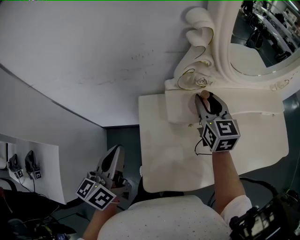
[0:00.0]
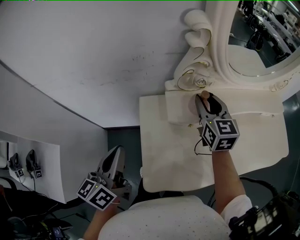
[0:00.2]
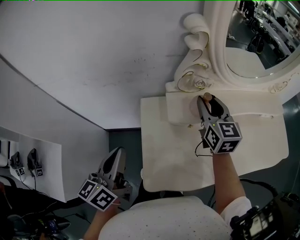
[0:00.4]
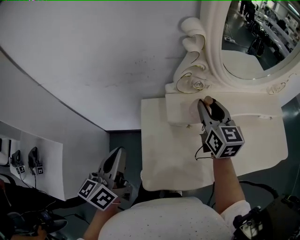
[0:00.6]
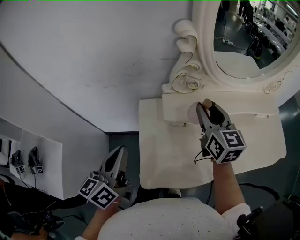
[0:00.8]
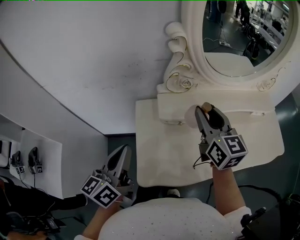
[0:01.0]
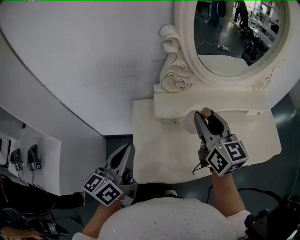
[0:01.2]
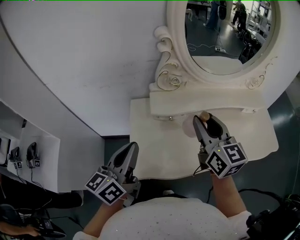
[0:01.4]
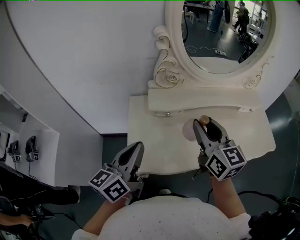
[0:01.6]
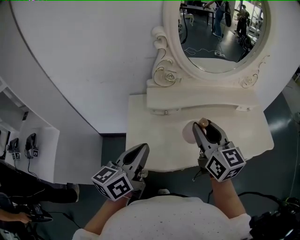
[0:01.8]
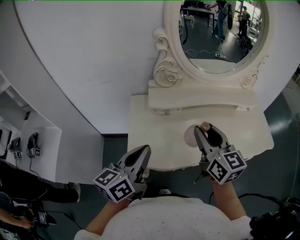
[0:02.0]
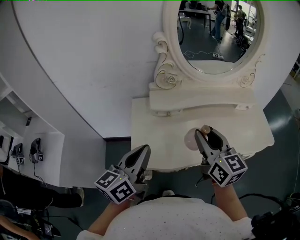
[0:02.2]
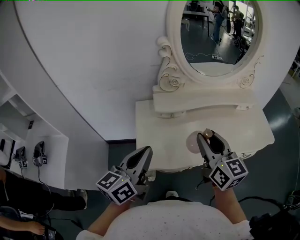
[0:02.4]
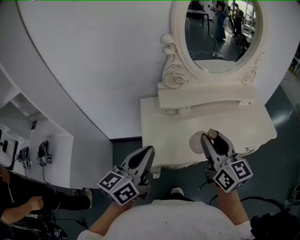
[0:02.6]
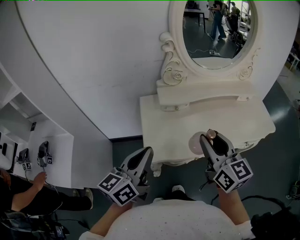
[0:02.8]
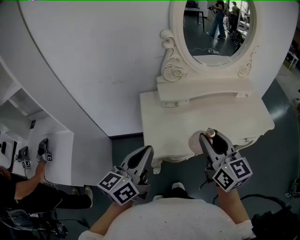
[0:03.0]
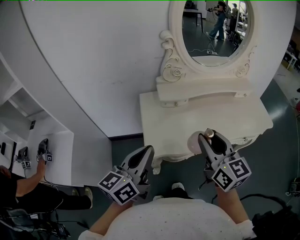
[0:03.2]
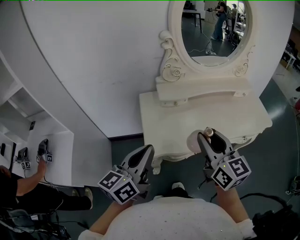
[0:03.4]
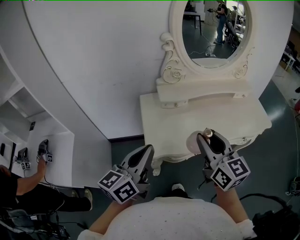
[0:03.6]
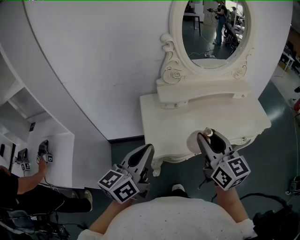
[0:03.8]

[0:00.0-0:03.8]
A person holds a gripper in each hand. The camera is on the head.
0:00.0 to 0:01.2: The left gripper moves to the right, backward and upward, roughly 10 cm. Meanwhile the right gripper heads backward and upward, covering approximately 15 cm.
0:01.2 to 0:02.6: The right gripper goes some 20 cm backward; the left gripper travels backward by some 10 cm.
0:02.6 to 0:03.8: Both grippers move backward, approximately 5 cm.

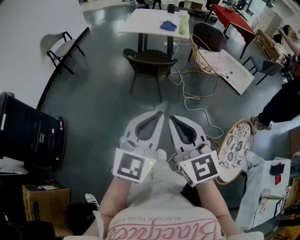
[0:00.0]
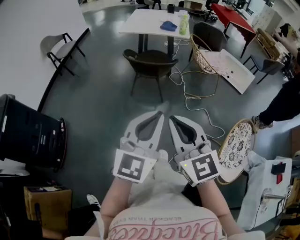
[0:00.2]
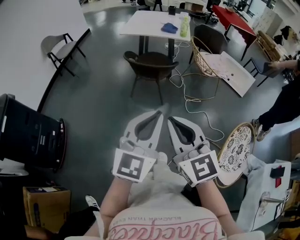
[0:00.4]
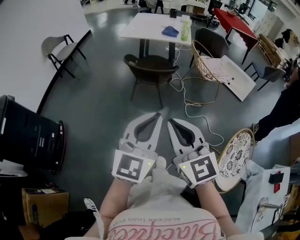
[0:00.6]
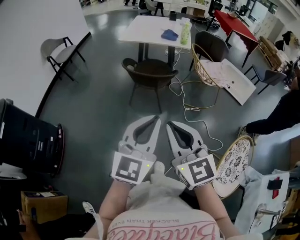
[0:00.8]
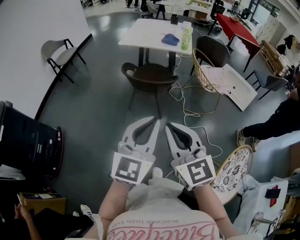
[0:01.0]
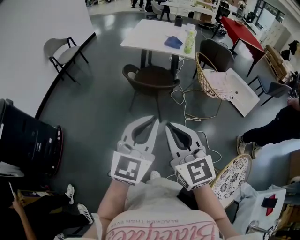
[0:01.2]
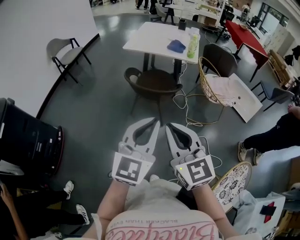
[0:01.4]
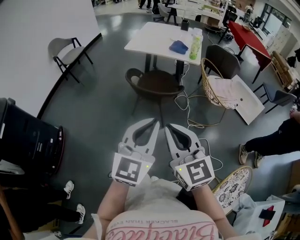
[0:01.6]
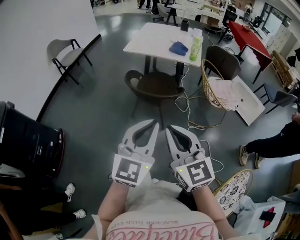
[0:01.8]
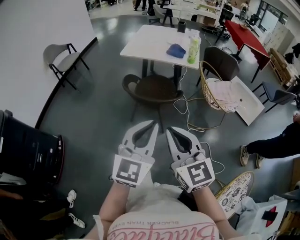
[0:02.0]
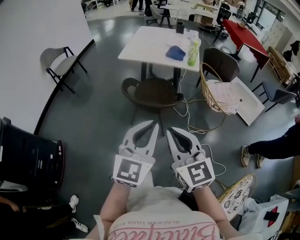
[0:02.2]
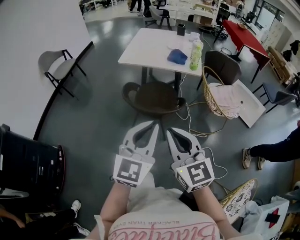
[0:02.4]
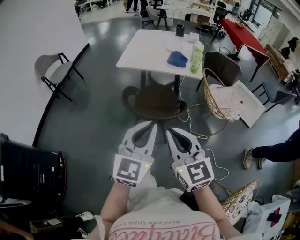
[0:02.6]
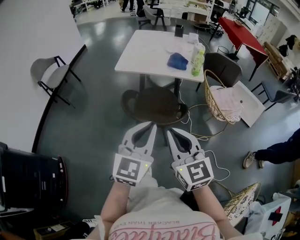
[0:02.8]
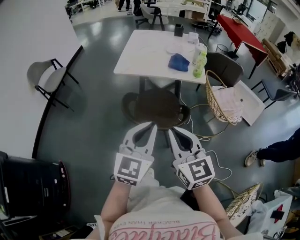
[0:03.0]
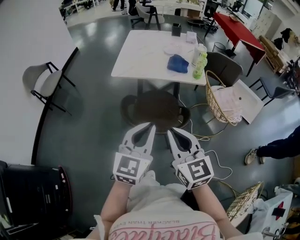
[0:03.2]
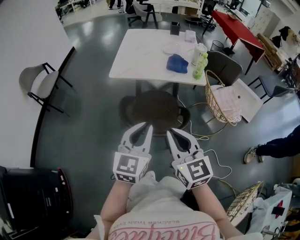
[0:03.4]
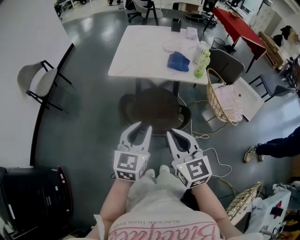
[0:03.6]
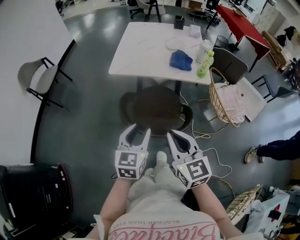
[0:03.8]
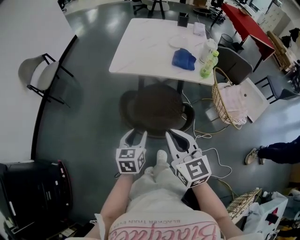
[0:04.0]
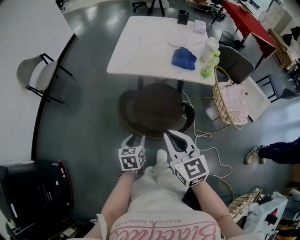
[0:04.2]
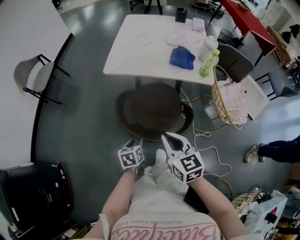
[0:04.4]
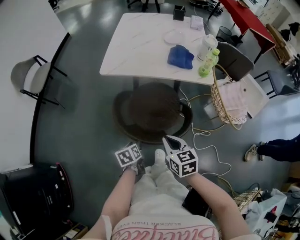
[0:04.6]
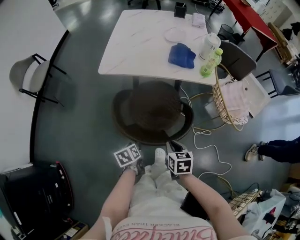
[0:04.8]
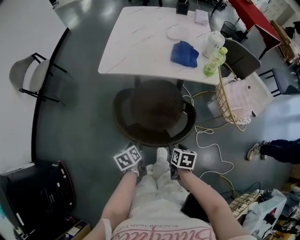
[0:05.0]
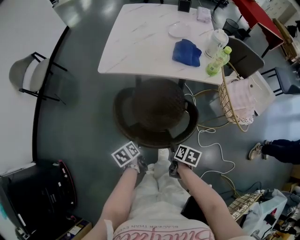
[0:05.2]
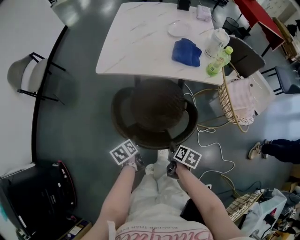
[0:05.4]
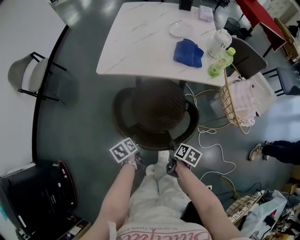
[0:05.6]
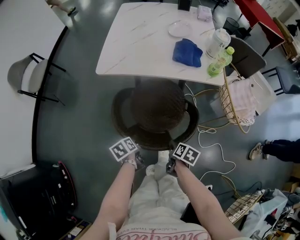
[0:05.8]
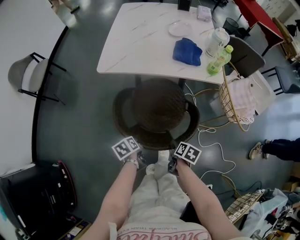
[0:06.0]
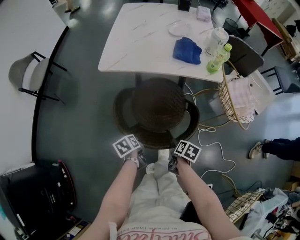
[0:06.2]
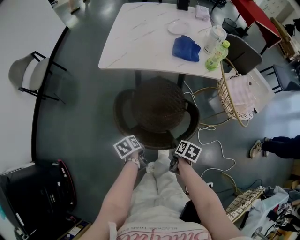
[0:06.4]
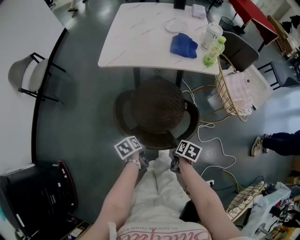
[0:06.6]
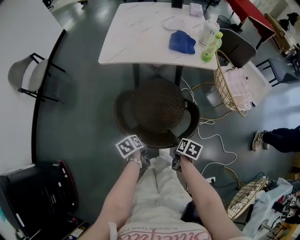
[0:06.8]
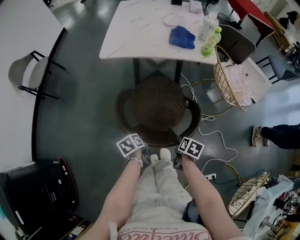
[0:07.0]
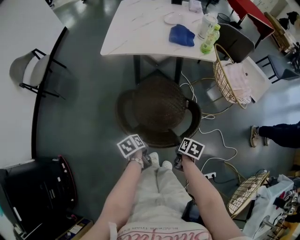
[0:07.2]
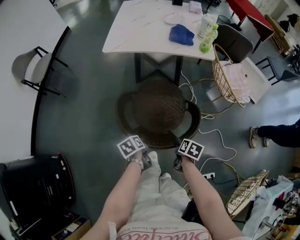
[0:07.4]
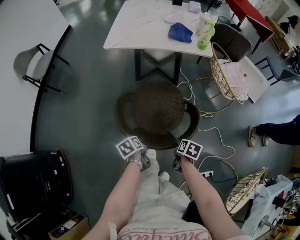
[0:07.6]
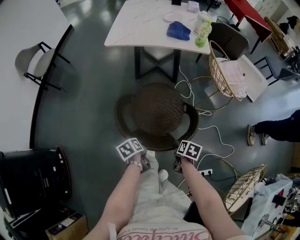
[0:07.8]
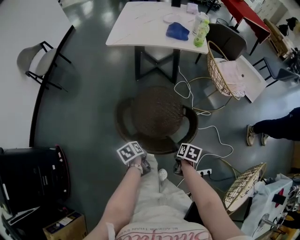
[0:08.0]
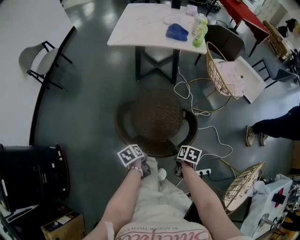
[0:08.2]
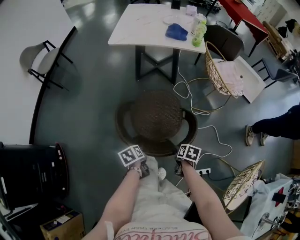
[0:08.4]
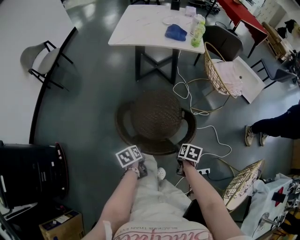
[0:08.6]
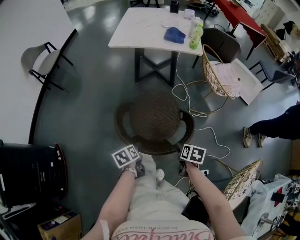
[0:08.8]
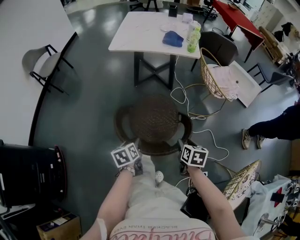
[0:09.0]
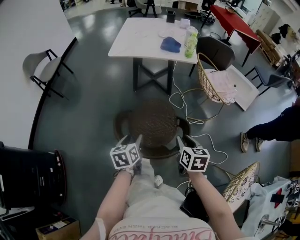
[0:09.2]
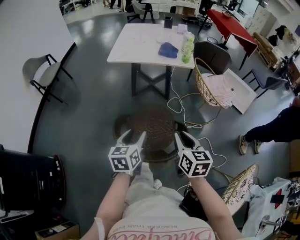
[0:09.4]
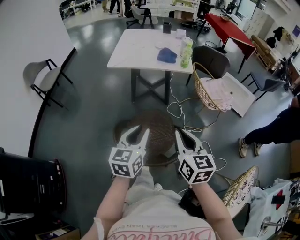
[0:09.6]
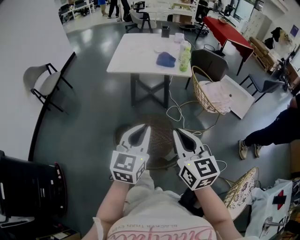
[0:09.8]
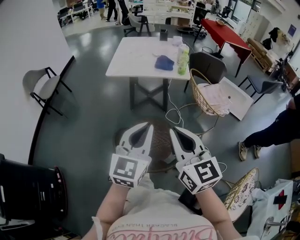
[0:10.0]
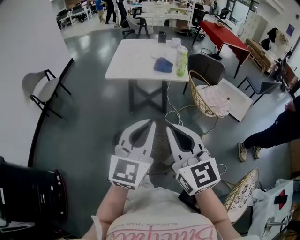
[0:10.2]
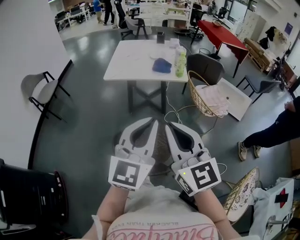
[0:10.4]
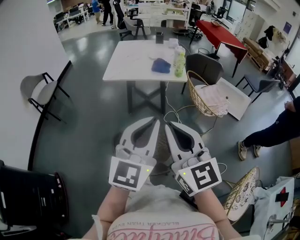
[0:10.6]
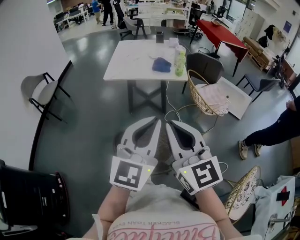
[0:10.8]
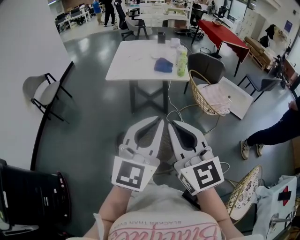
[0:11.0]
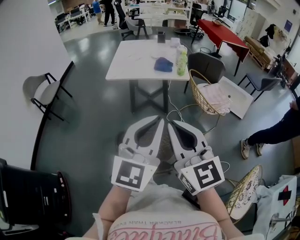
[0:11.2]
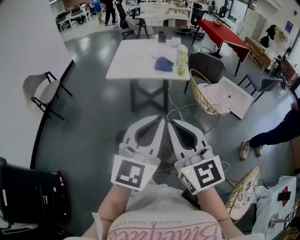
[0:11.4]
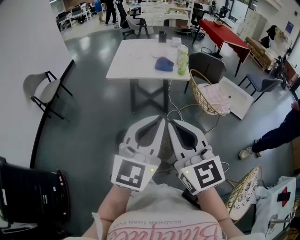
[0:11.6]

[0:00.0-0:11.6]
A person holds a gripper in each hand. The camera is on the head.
0:00.0 to 0:01.4: The grippers both shift forward by about 20 cm.
0:01.4 to 0:02.8: The grippers both shift forward by approximately 30 cm.
0:02.8 to 0:04.4: The right gripper moves forward and downward, approximately 25 cm, and turns by some 20 degrees. The left gripper moves downward and forward, about 40 cm, tips its fingers downward by roughly 50 degrees, and opens.
0:04.4 to 0:05.8: The left gripper shifts roughly 10 cm downward and forward, and changes its angle by some 30 degrees. The right gripper goes approximately 30 cm downward, angles its fingers downward, by roughly 40 degrees, and opens up.
0:05.8 to 0:07.2: The two grippers go roughly 15 cm backward.
0:07.2 to 0:08.8: Both grippers travel together backward, roughly 20 cm.
0:08.8 to 0:10.2: The two grippers go approximately 40 cm upward. The right gripper tips its fingers upward by some 60 degrees, and closes up; the left gripper angles its fingers upward, by approximately 60 degrees, and closes its fingers.
0:10.2 to 0:11.6: The grippers make only small movements.

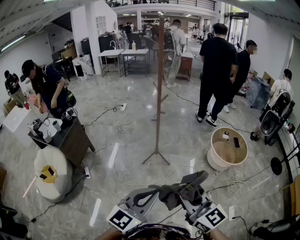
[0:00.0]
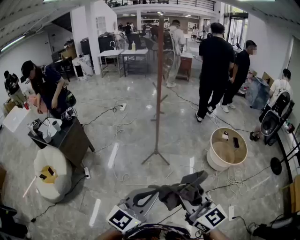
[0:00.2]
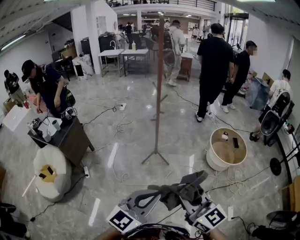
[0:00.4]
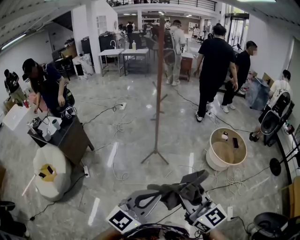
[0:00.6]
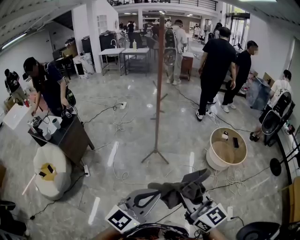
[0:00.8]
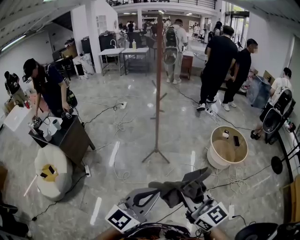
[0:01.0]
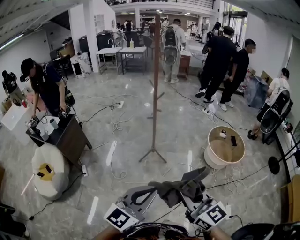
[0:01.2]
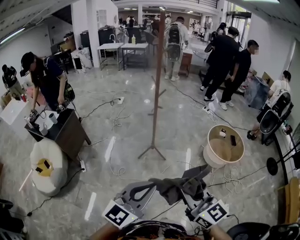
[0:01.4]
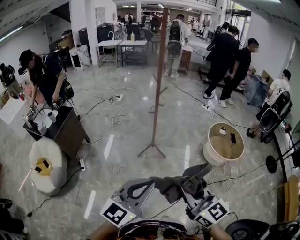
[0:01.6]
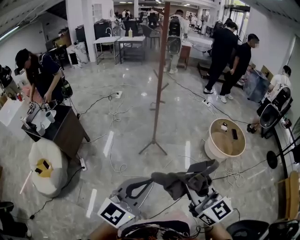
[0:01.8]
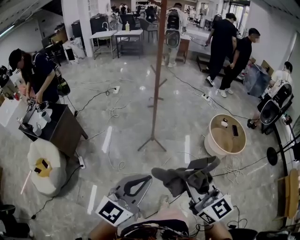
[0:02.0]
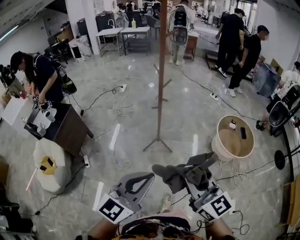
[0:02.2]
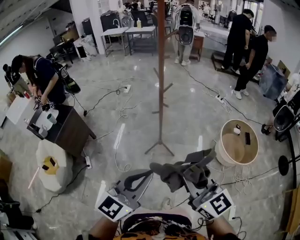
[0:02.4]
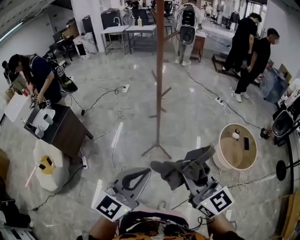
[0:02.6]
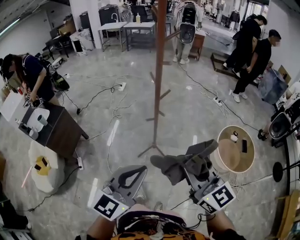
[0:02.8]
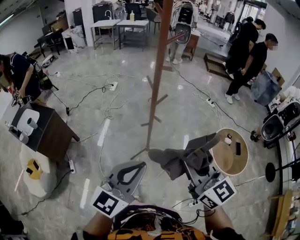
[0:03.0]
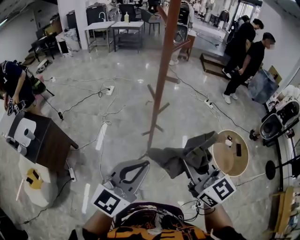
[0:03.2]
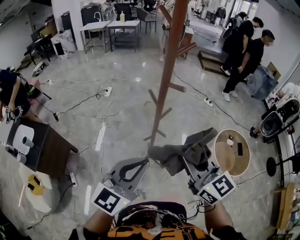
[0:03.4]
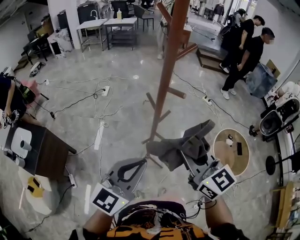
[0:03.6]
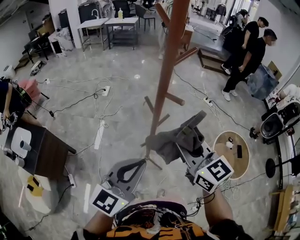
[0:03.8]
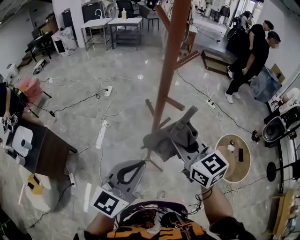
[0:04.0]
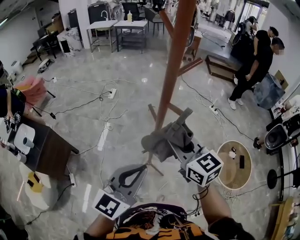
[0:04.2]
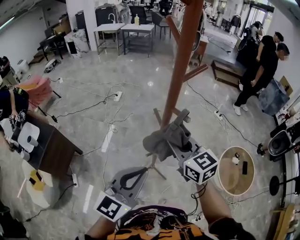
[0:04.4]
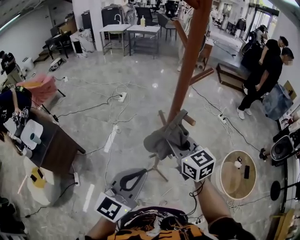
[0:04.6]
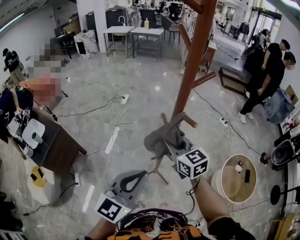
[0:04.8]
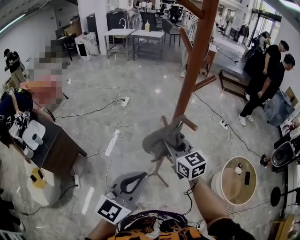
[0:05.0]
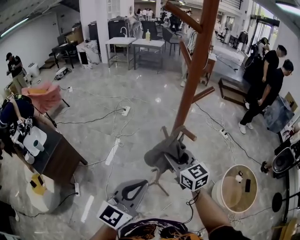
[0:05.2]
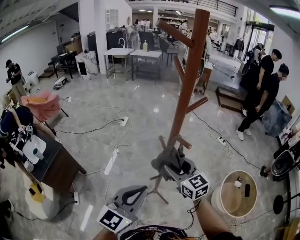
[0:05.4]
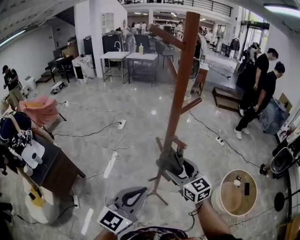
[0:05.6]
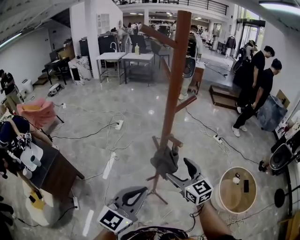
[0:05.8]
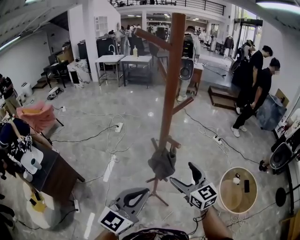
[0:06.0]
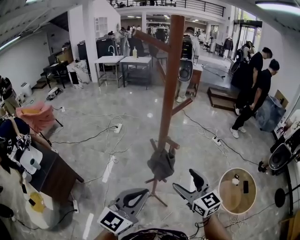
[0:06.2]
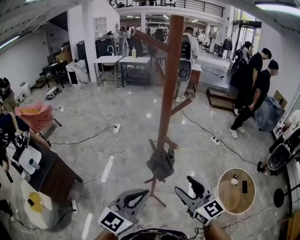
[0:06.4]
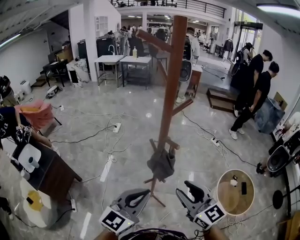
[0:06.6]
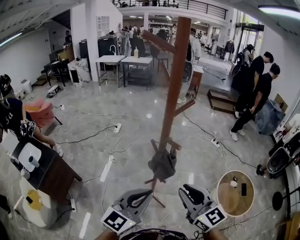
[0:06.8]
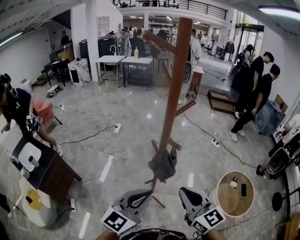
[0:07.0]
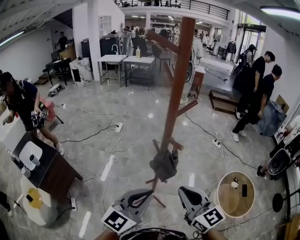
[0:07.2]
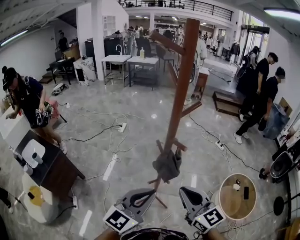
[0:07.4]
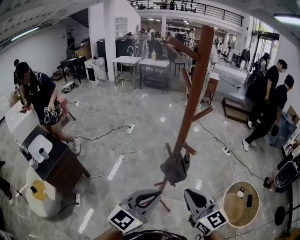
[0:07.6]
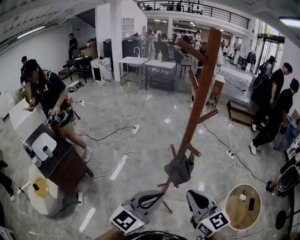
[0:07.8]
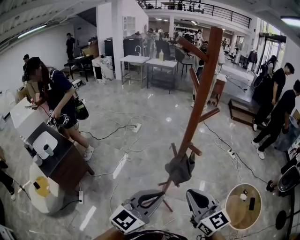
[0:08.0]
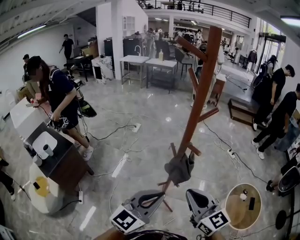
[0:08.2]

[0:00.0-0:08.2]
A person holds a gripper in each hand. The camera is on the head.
0:00.0 to 0:01.6: The grippers move only a little.
0:01.6 to 0:03.2: The pair of grippers is taken forward, approximately 50 cm.
0:03.2 to 0:05.0: The right gripper goes roughly 25 cm forward, while the left gripper goes some 10 cm forward.
0:05.0 to 0:06.6: The right gripper moves backward and to the right, roughly 20 cm, and opens, then closes again.
0:06.6 to 0:08.2: The right gripper closes up.
